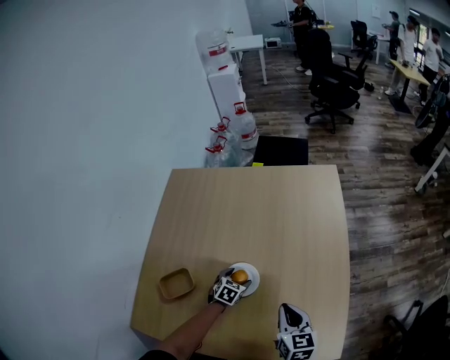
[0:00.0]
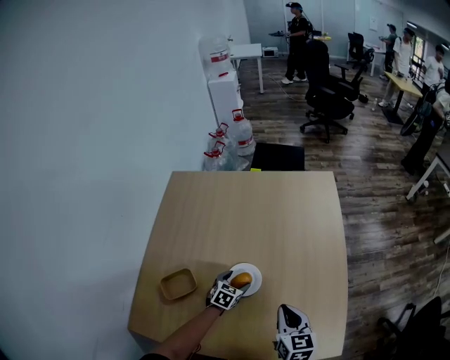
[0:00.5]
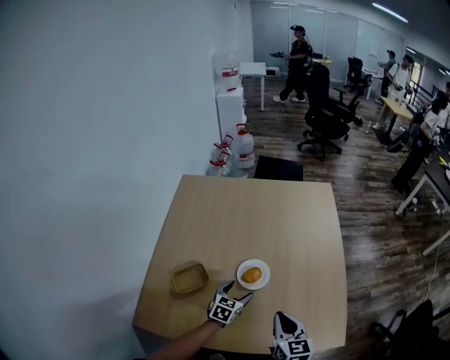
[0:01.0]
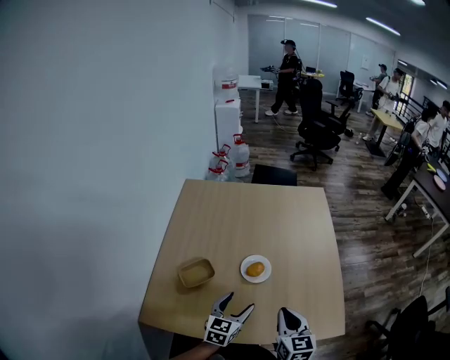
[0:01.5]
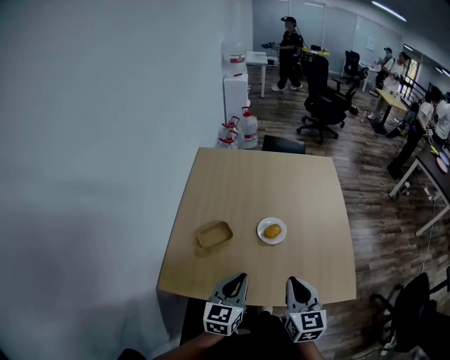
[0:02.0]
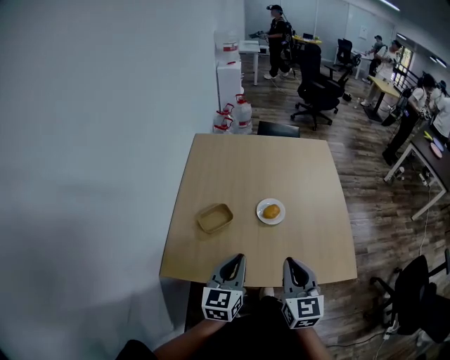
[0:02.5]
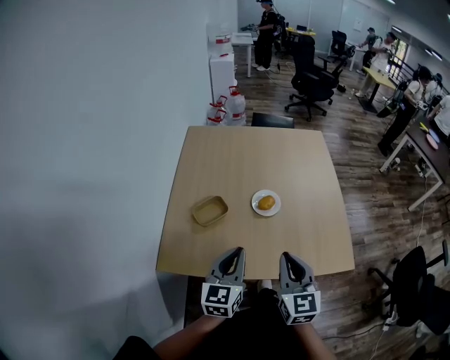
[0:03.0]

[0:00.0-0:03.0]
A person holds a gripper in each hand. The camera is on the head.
0:00.0 to 0:01.5: The right gripper shifts some 20 cm backward, upward and to the left. The left gripper heads upward and backward, covering some 30 cm, and tilts its fingers about 30 degrees upward.
0:01.5 to 0:03.0: The left gripper heads upward, backward and to the left, covering roughly 20 cm, and closes its fingers. The right gripper travels backward, to the left and upward by roughly 15 cm.

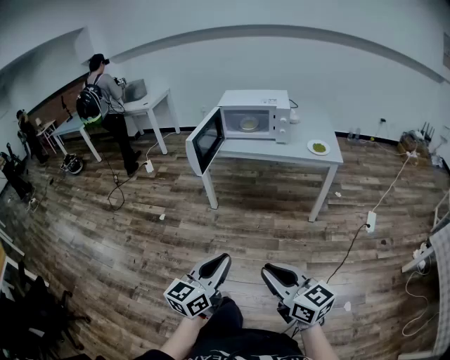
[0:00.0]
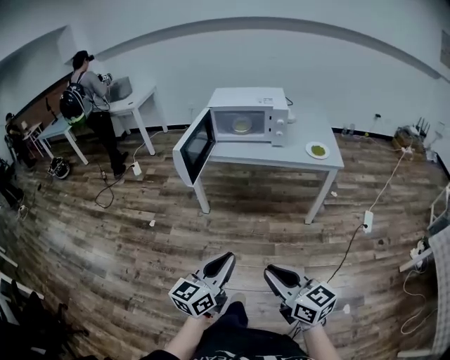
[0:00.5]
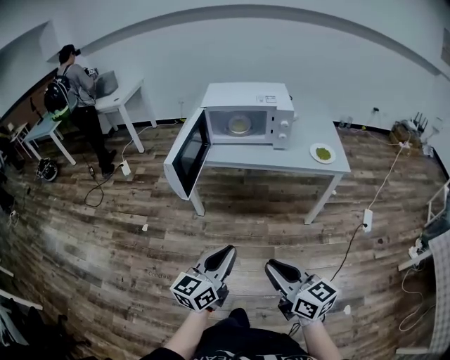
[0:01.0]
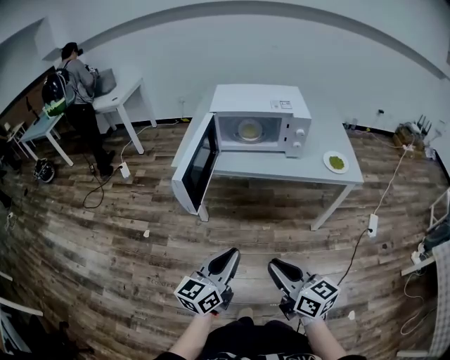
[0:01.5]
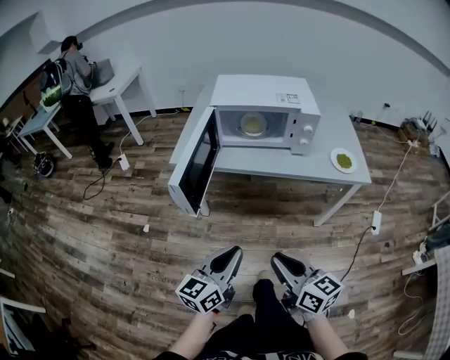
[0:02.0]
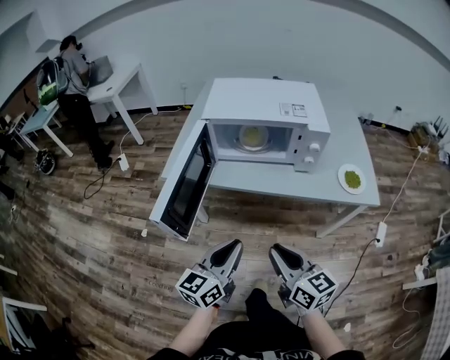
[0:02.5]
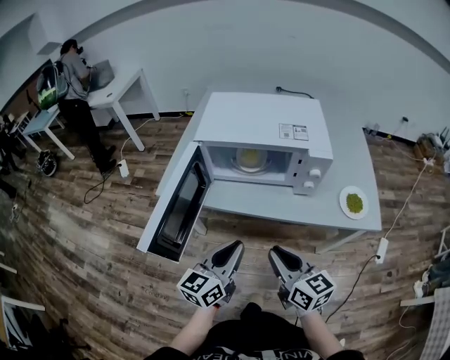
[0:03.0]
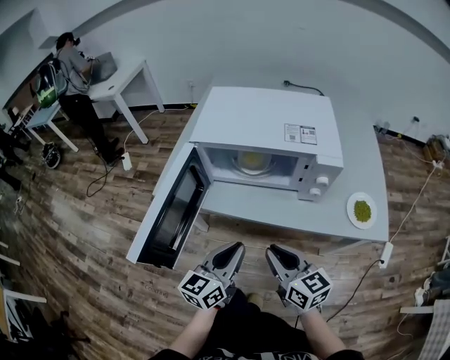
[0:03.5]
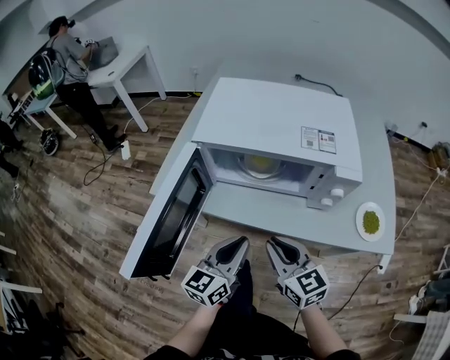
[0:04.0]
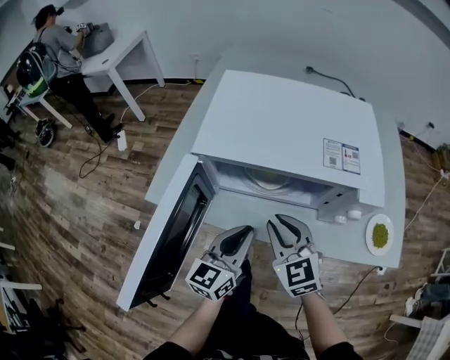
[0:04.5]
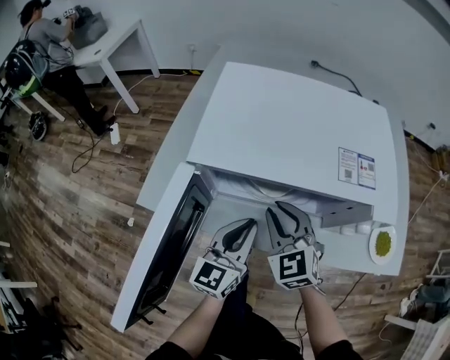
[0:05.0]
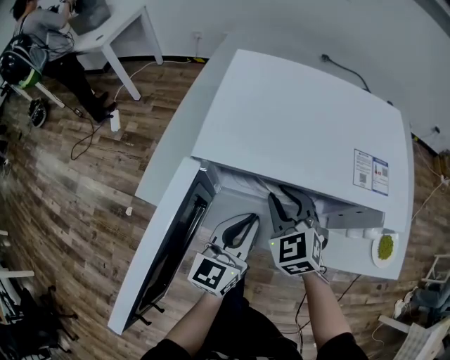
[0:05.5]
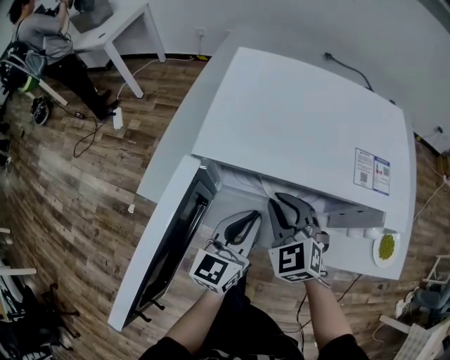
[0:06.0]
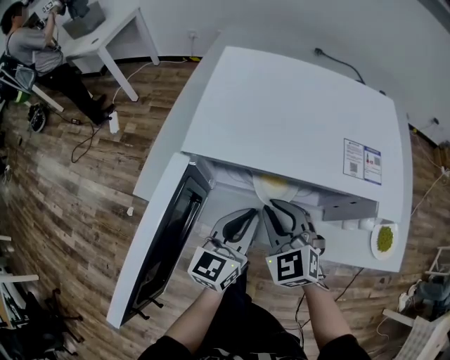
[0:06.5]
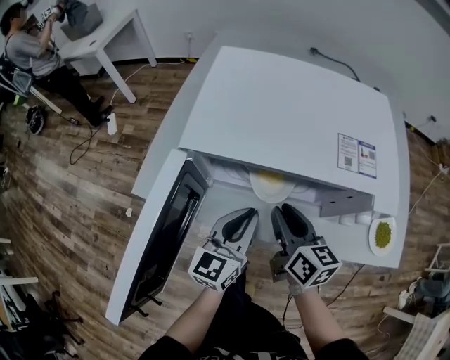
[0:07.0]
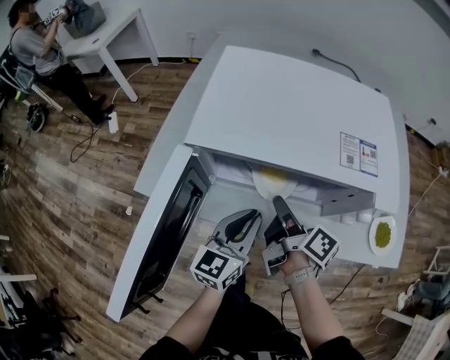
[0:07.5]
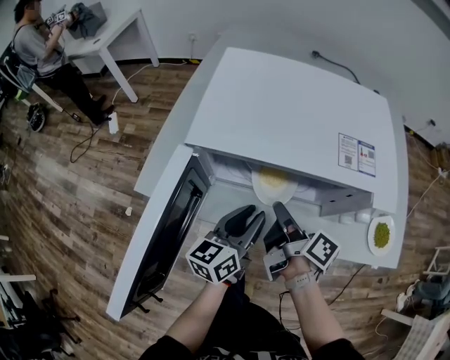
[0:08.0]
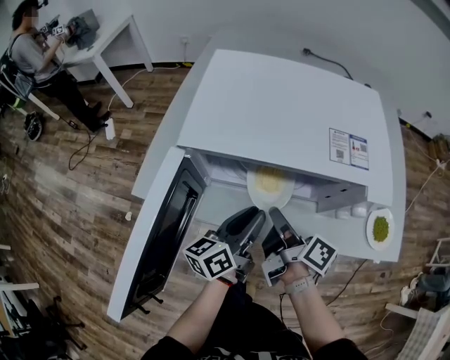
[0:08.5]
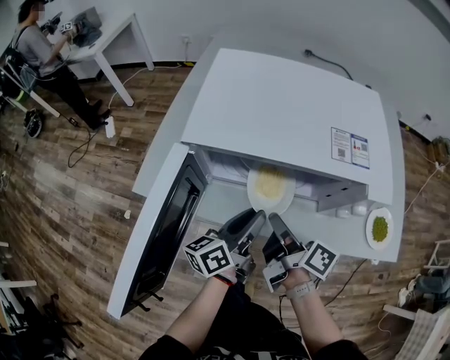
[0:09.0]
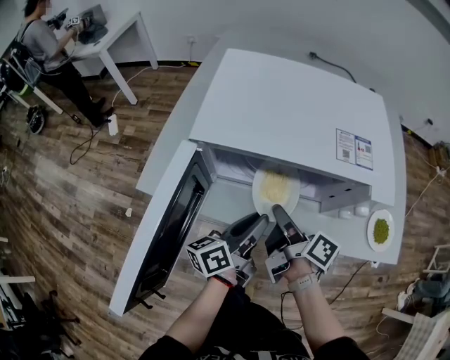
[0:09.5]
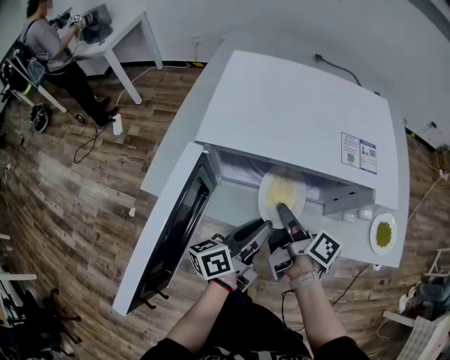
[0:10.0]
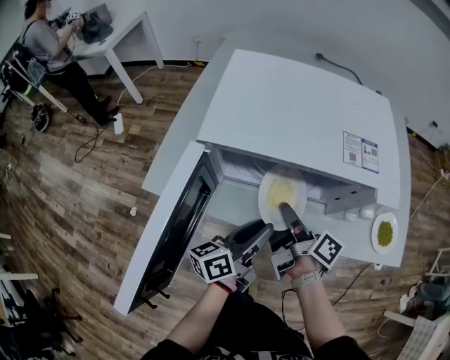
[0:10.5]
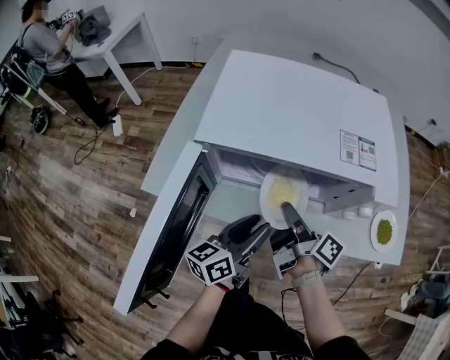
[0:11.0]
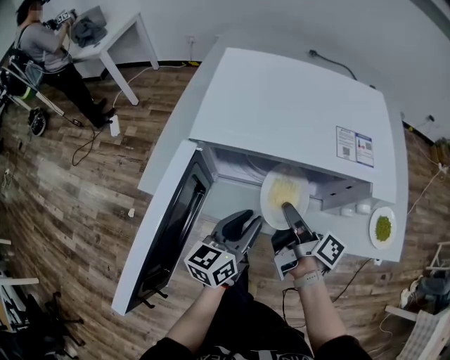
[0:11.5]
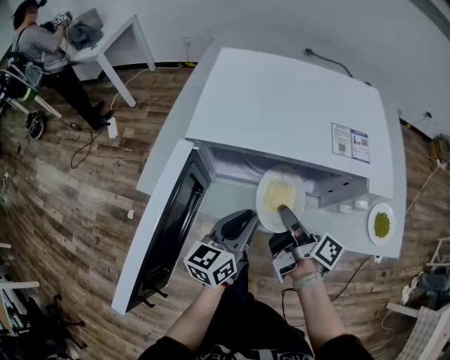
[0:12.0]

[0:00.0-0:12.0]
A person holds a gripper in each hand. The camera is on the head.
0:00.0 to 0:02.0: Both grippers move forward, about 35 cm.
0:02.0 to 0:04.0: The two grippers go about 30 cm forward. The right gripper changes its angle by approximately 20 degrees.
0:04.0 to 0:06.0: The two grippers go about 15 cm forward. The right gripper changes its angle by approximately 40 degrees.
0:06.0 to 0:08.0: The right gripper goes about 5 cm to the right, and rotates around the line of its fingers by roughly 110 degrees, clockwise from behind.
0:08.0 to 0:10.0: The left gripper changes its angle by approximately 30 degrees.
0:10.0 to 0:12.0: The left gripper turns by some 30 degrees, and opens, then closes once more.

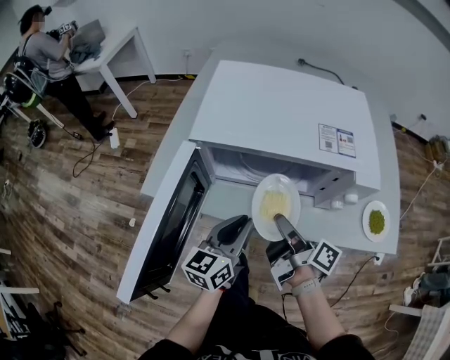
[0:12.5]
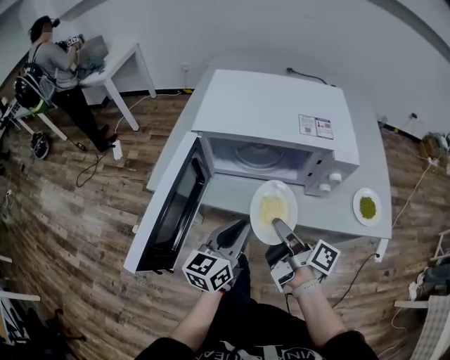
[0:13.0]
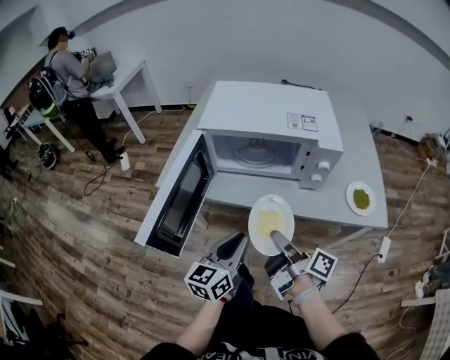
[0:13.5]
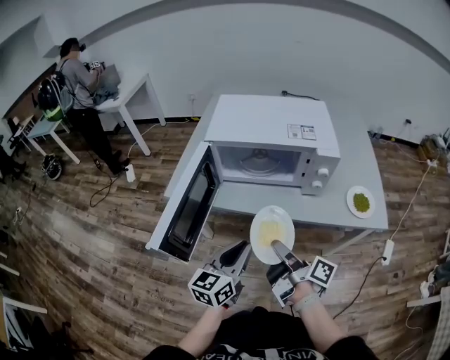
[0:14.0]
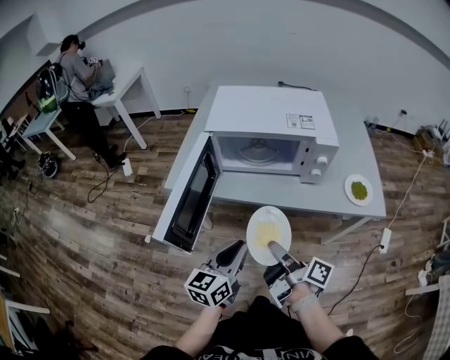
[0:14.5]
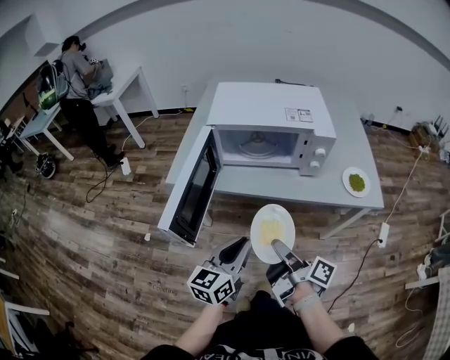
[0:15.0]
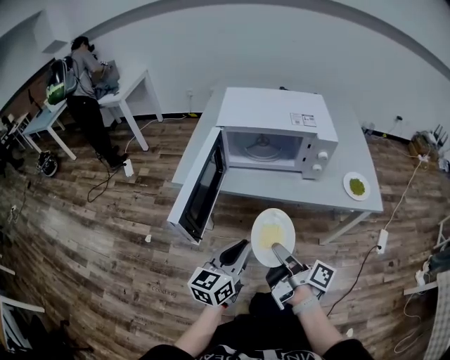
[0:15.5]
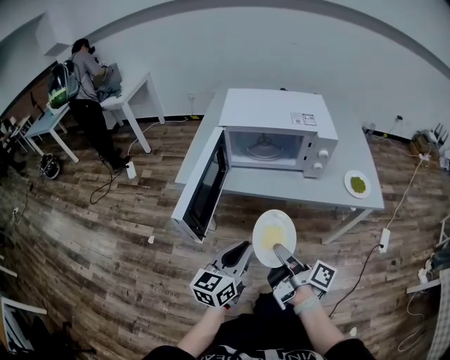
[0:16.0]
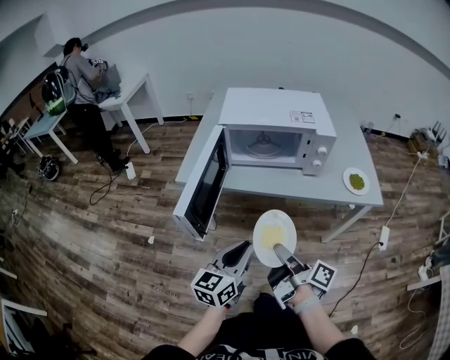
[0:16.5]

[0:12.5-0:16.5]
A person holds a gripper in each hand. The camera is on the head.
0:12.5 to 0:14.5: The two grippers go approximately 20 cm backward.
0:14.5 to 0:16.5: The two grippers go roughly 5 cm backward.

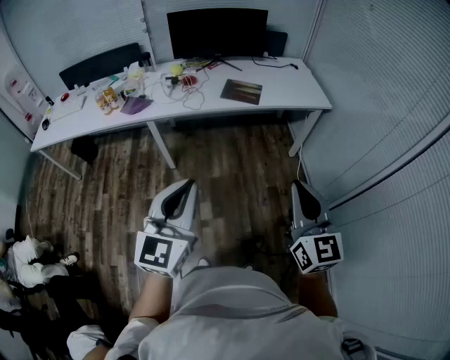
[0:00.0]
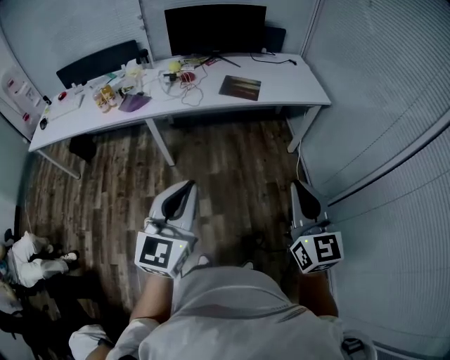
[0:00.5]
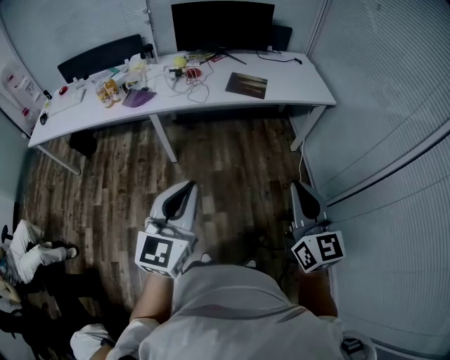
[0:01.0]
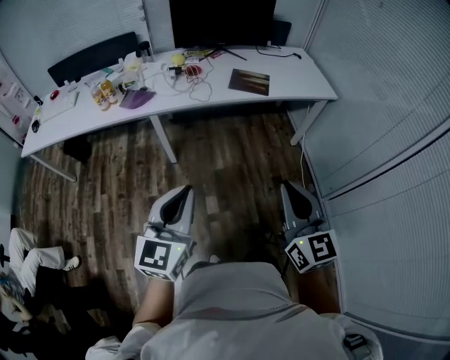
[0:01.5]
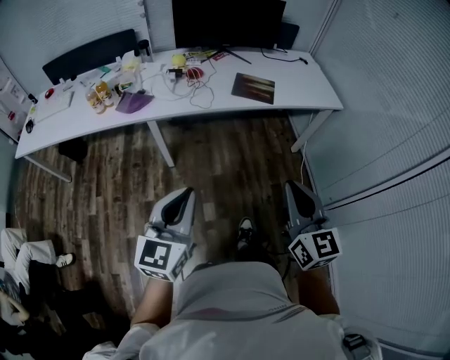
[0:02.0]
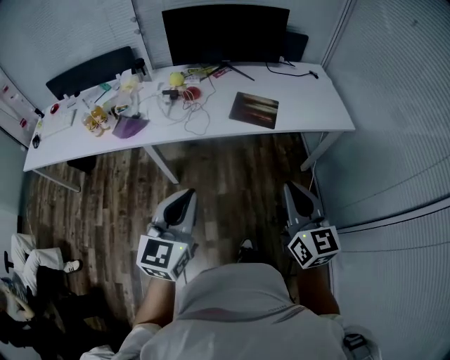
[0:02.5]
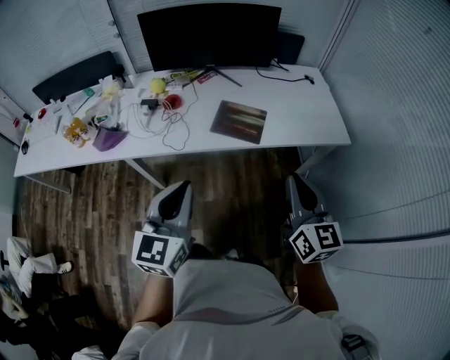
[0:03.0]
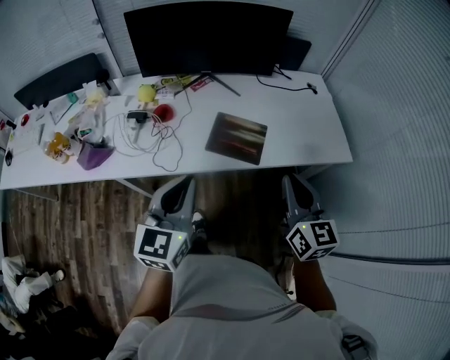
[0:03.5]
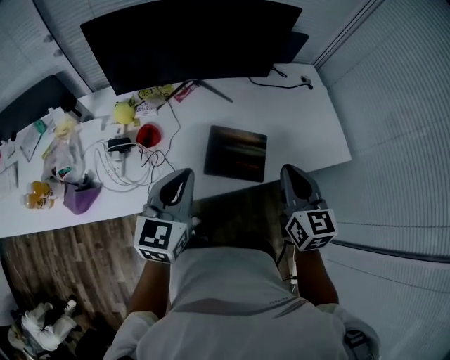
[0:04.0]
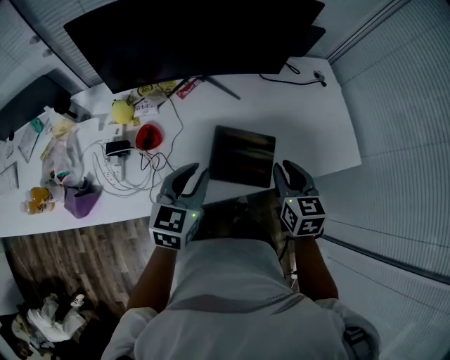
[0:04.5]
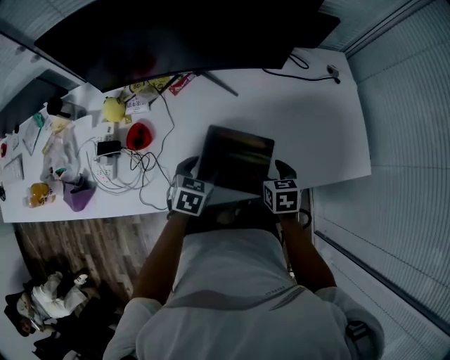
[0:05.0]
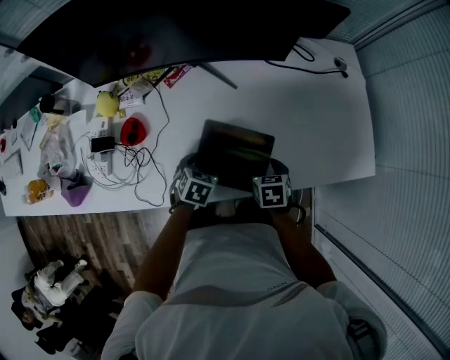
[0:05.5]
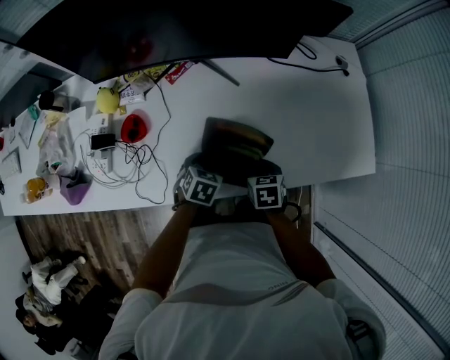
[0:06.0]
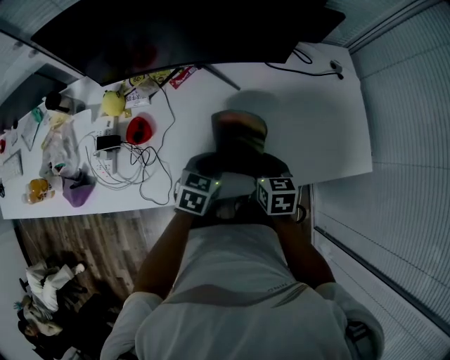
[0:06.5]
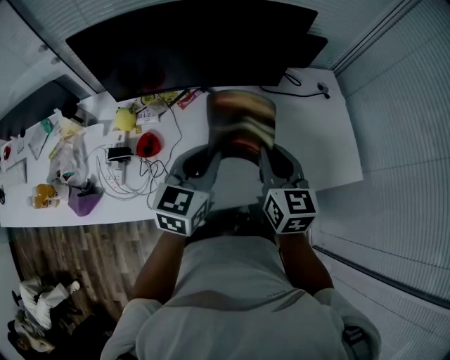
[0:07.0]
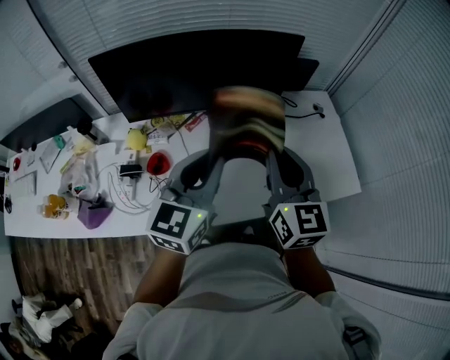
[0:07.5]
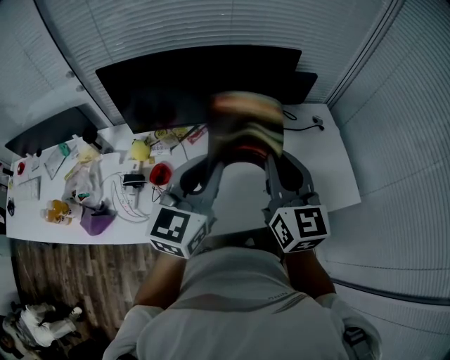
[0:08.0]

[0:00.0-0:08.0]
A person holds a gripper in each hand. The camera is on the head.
0:00.0 to 0:02.0: The left gripper is displaced to the left, forward and downward by roughly 20 cm. Meanwhile the right gripper travels to the left and forward by roughly 20 cm.
0:02.0 to 0:04.0: Both grippers are carried forward, about 60 cm.
0:04.0 to 0:06.0: The grippers both shift downward by some 30 cm. The left gripper angles its fingers downward, by roughly 50 degrees, and opens its fingers, while the right gripper tips its fingers downward by some 40 degrees, and opens up.
0:06.0 to 0:08.0: Both grippers move upward, approximately 40 cm. The left gripper tilts its fingers approximately 60 degrees upward, and closes up; the right gripper tips its fingers upward by approximately 60 degrees.
